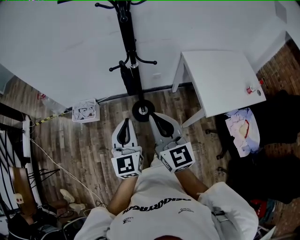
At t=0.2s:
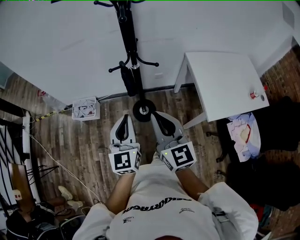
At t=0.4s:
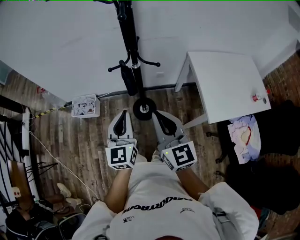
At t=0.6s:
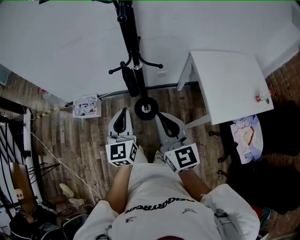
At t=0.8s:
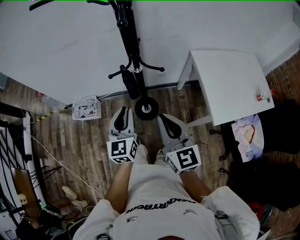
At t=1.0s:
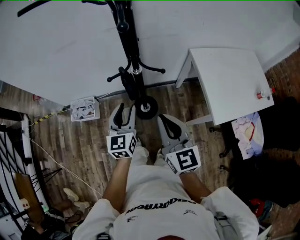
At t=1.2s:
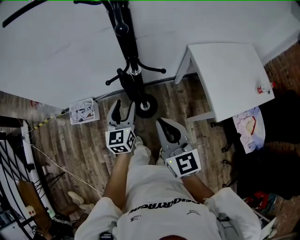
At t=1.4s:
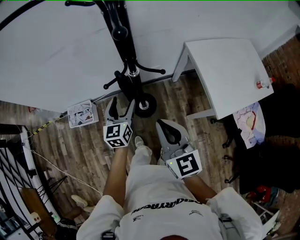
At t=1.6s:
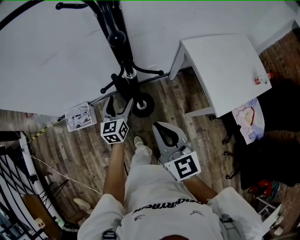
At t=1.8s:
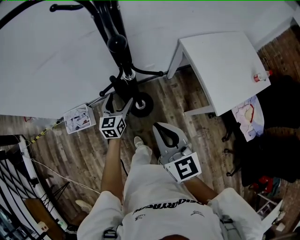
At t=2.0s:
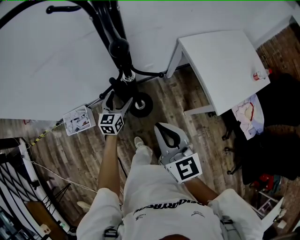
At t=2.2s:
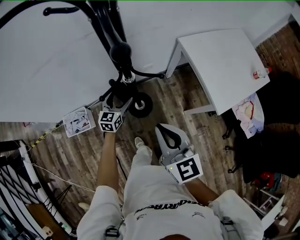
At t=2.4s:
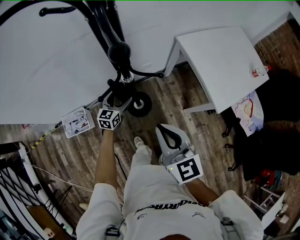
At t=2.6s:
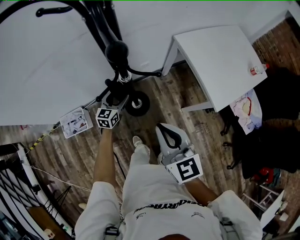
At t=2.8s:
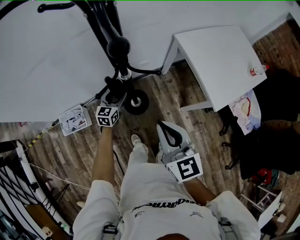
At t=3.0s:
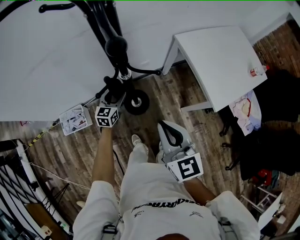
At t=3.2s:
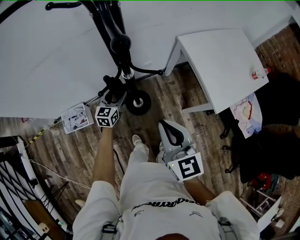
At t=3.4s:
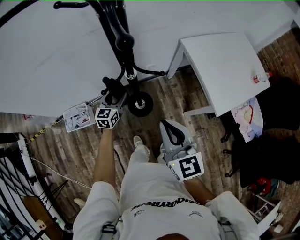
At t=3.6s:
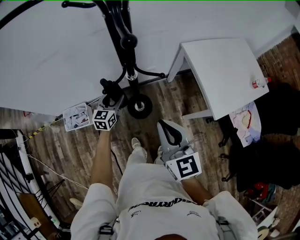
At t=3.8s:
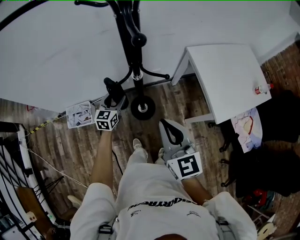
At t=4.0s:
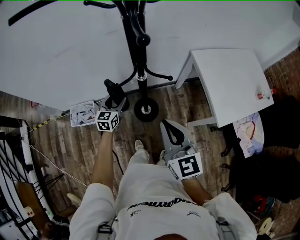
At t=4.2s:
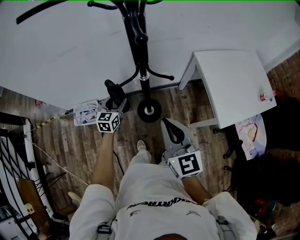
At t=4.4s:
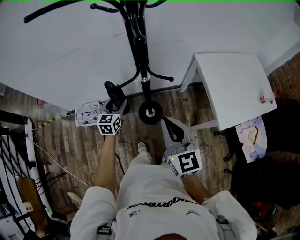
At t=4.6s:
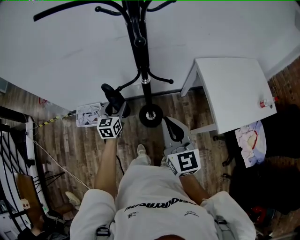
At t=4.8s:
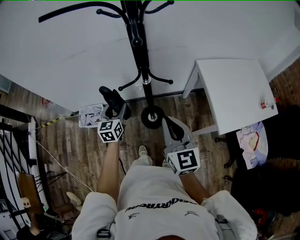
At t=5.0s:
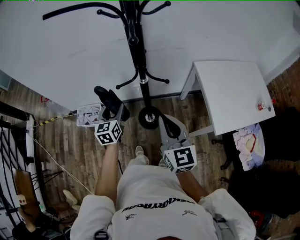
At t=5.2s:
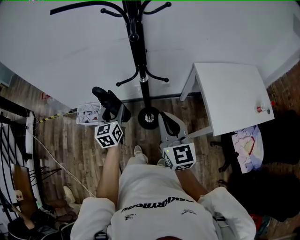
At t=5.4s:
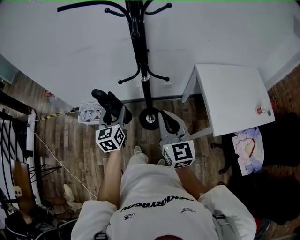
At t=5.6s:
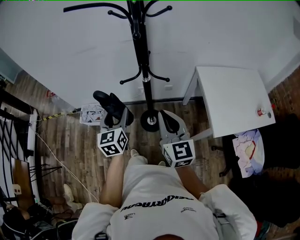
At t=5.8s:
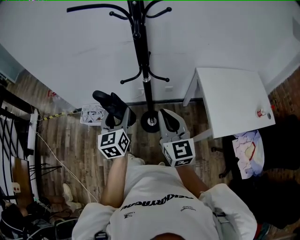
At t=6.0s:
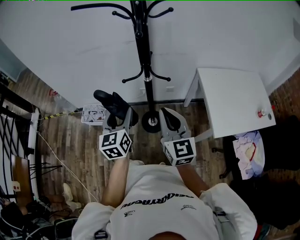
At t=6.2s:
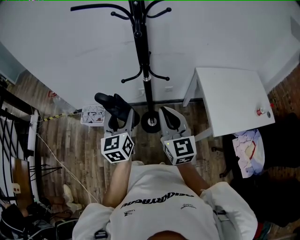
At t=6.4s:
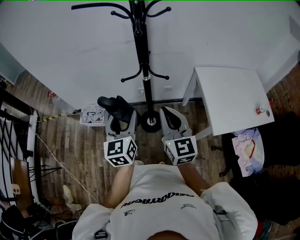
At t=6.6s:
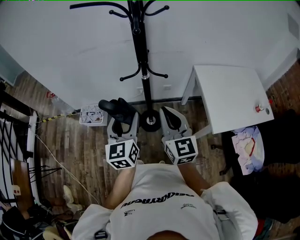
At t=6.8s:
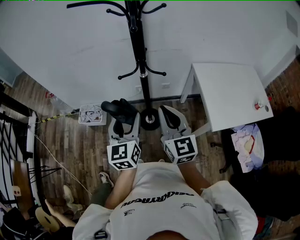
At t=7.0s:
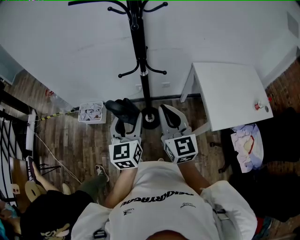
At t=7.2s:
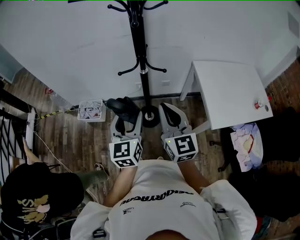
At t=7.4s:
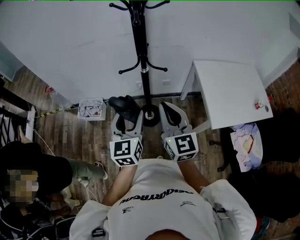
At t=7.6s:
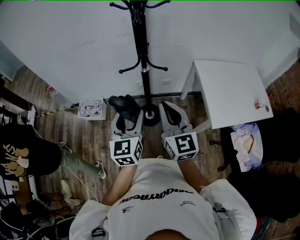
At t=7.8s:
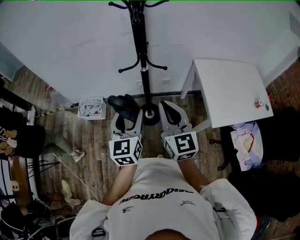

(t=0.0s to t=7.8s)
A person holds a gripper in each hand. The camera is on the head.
t=0.0s - t=1.6s: The right gripper is displaced forward and downward by about 20 cm. Meanwhile the left gripper travels forward and downward by some 35 cm, swivels about 20 degrees, and opens up.
t=1.6s - t=3.2s: The left gripper moves downward and forward, about 10 cm.
t=3.2s - t=4.6s: The left gripper is displaced upward, backward and to the left by approximately 15 cm, and changes its angle by some 20 degrees.
t=4.6s - t=6.2s: The right gripper heads backward, covering roughly 5 cm; the left gripper moves backward and upward, approximately 25 cm.
t=6.2s - t=7.8s: The left gripper shifts by about 5 cm.

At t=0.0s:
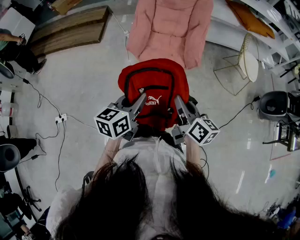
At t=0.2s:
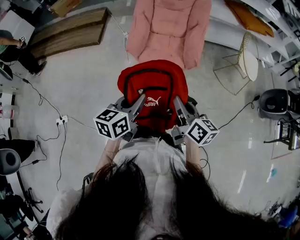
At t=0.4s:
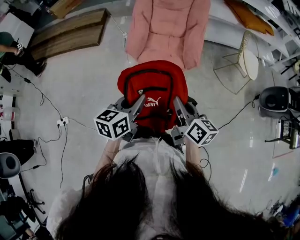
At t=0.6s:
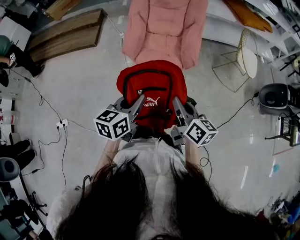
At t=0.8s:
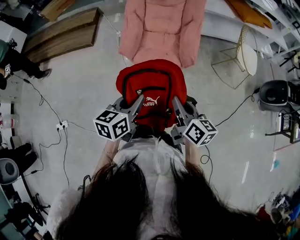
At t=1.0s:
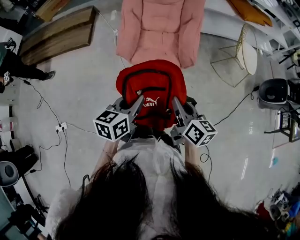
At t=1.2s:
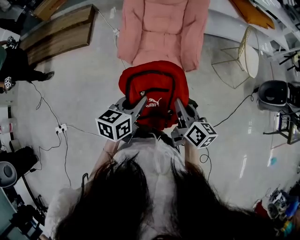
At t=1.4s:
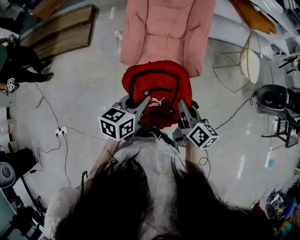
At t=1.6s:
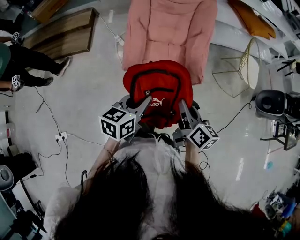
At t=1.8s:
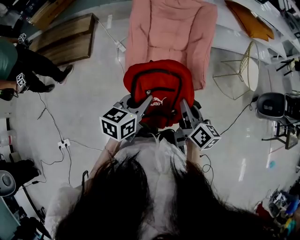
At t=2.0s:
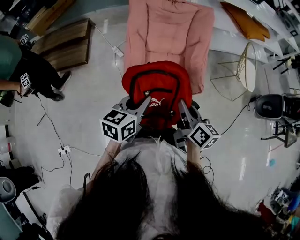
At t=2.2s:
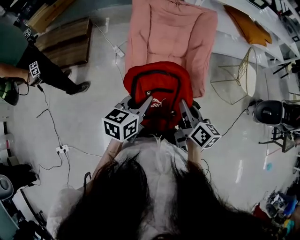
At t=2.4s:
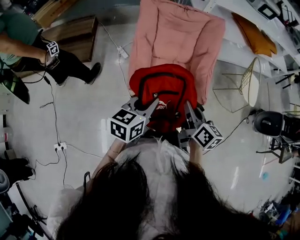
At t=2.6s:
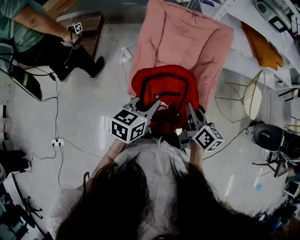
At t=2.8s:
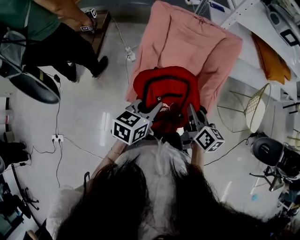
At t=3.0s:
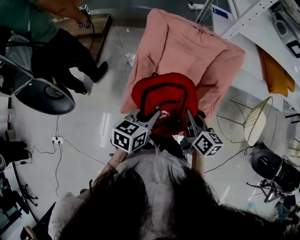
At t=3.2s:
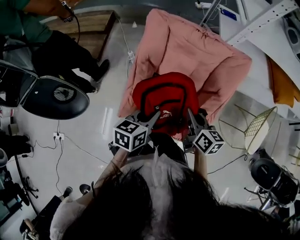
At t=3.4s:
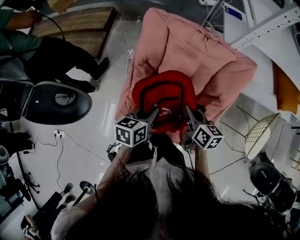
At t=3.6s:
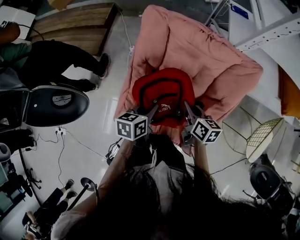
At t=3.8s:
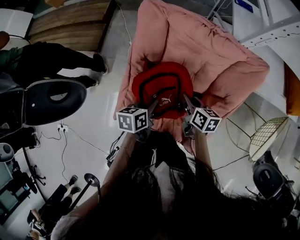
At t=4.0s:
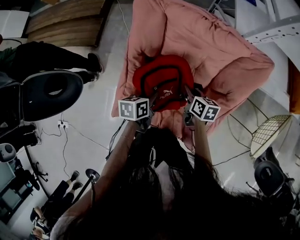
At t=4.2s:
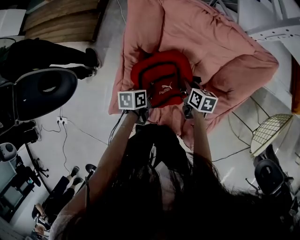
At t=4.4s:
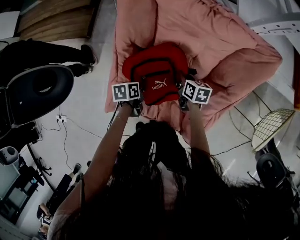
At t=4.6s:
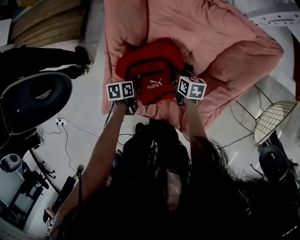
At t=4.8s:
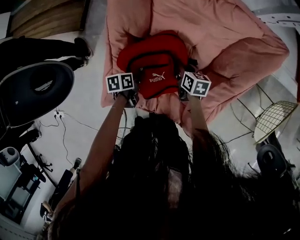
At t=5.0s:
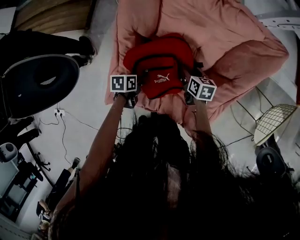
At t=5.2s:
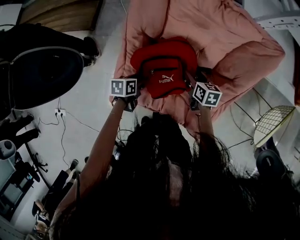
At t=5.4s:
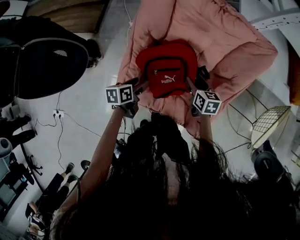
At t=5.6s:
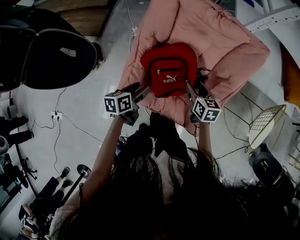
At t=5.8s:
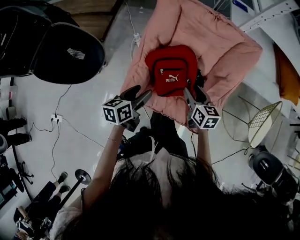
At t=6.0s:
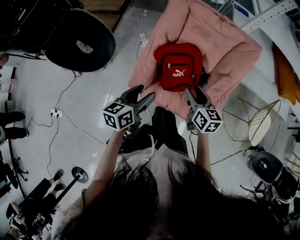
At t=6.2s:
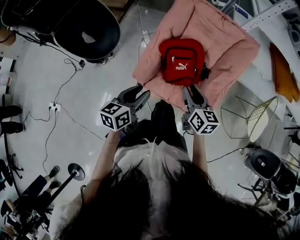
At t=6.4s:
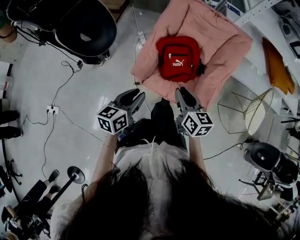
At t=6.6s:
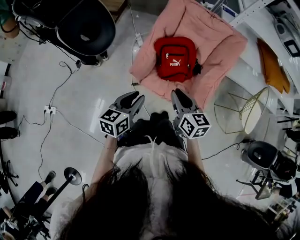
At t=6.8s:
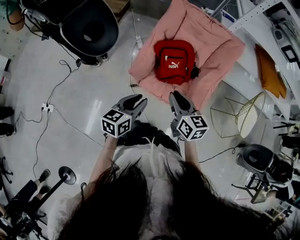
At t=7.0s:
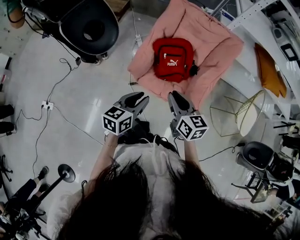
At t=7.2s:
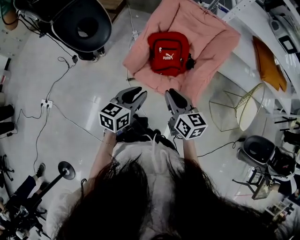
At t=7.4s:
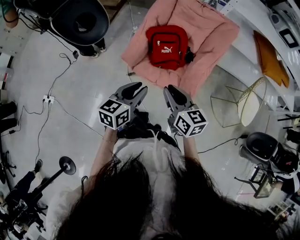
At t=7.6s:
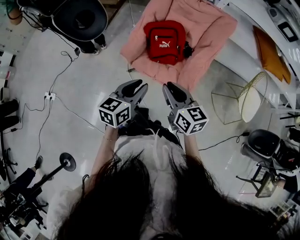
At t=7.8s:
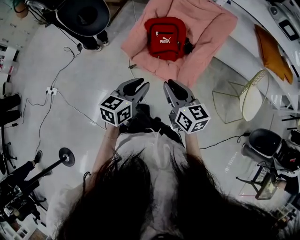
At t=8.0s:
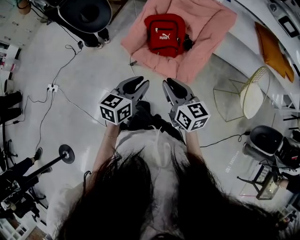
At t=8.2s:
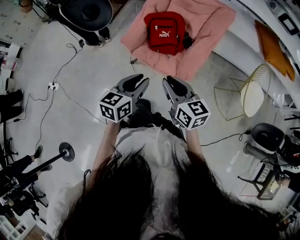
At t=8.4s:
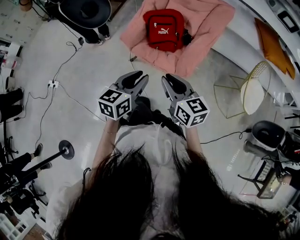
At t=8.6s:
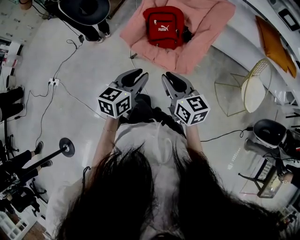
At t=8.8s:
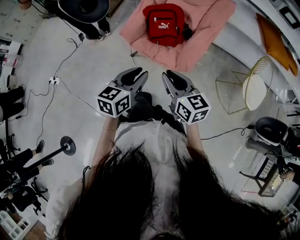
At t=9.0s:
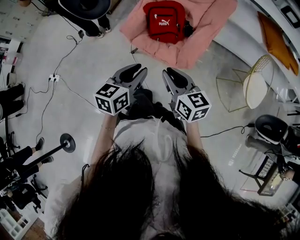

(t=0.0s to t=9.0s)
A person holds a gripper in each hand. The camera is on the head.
t=0.0s - t=1.6s: Both grippers travel together forward, some 20 cm.
t=1.6s - t=3.0s: The grippers both shift forward by some 30 cm.
t=3.0s - t=4.4s: The two grippers go roughly 40 cm downward and forward. The left gripper rotates approximately 40 degrees; the right gripper turns by about 30 degrees.
t=4.4s - t=6.0s: The two grippers go approximately 35 cm upward and backward. The right gripper changes its angle by some 30 degrees, and opens, while the left gripper angles its fingers upward, by about 30 degrees, and opens its fingers.
t=6.0s - t=7.6s: The two grippers go some 30 cm backward. The right gripper closes its fingers; the left gripper closes its fingers.
t=7.6s - t=9.0s: The two grippers go roughly 10 cm backward and to the right.

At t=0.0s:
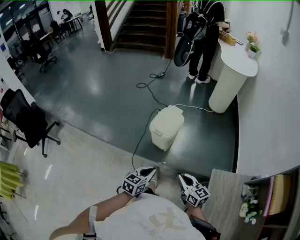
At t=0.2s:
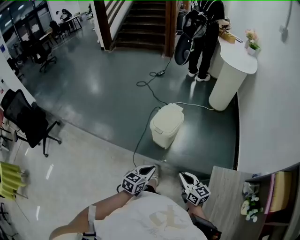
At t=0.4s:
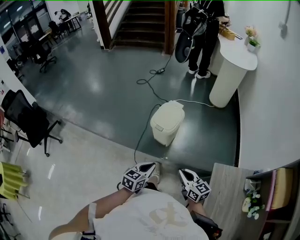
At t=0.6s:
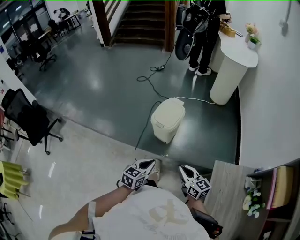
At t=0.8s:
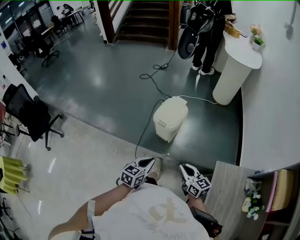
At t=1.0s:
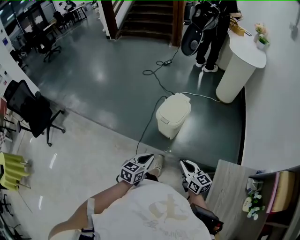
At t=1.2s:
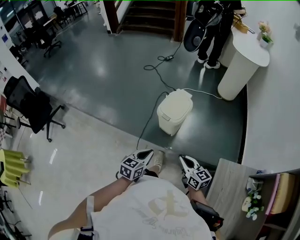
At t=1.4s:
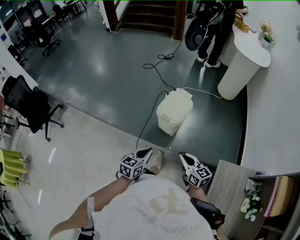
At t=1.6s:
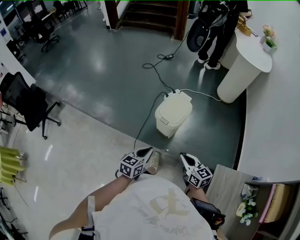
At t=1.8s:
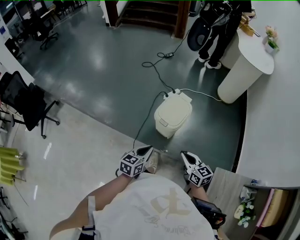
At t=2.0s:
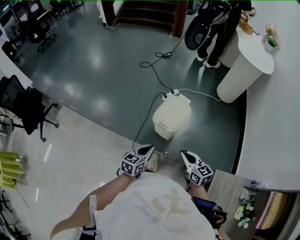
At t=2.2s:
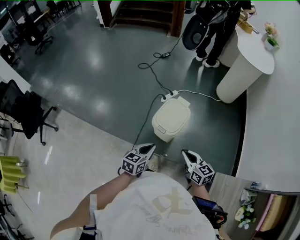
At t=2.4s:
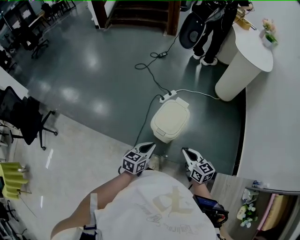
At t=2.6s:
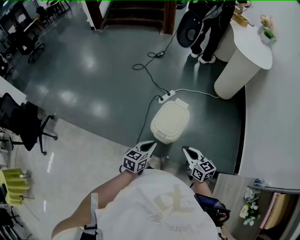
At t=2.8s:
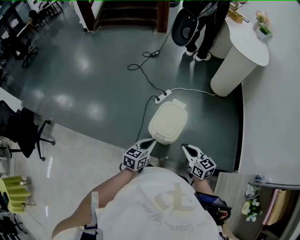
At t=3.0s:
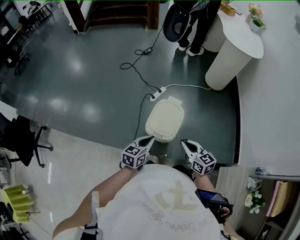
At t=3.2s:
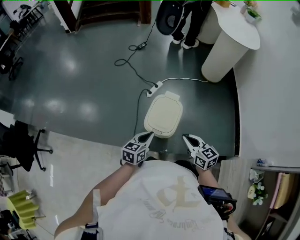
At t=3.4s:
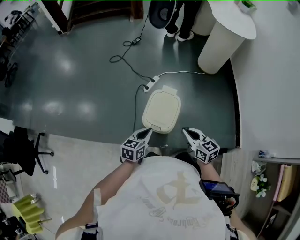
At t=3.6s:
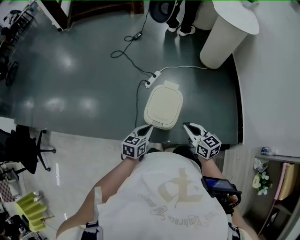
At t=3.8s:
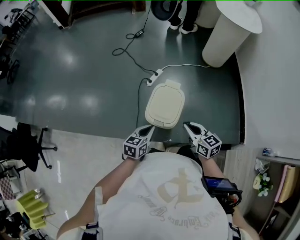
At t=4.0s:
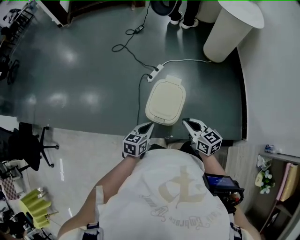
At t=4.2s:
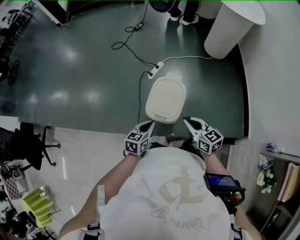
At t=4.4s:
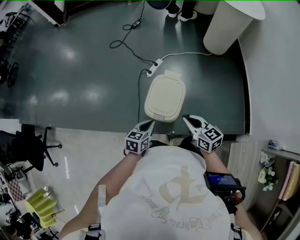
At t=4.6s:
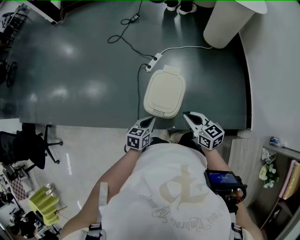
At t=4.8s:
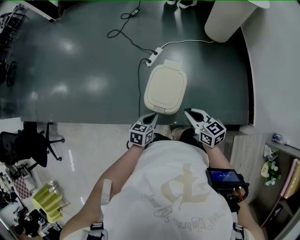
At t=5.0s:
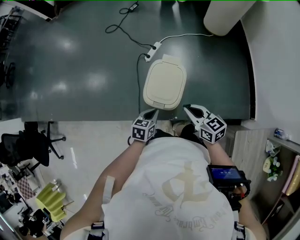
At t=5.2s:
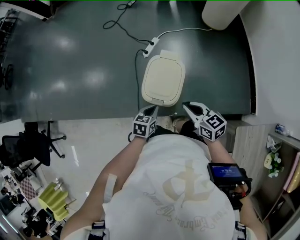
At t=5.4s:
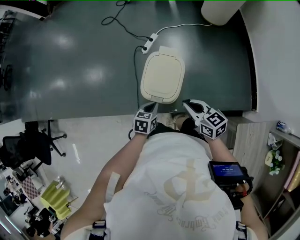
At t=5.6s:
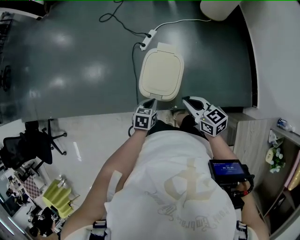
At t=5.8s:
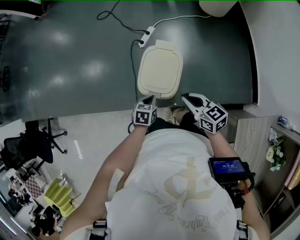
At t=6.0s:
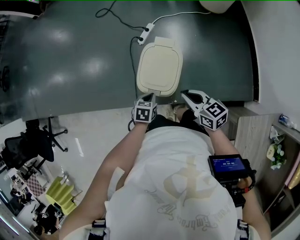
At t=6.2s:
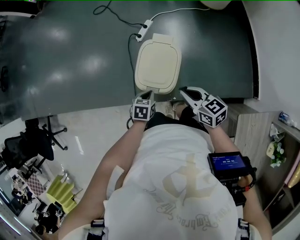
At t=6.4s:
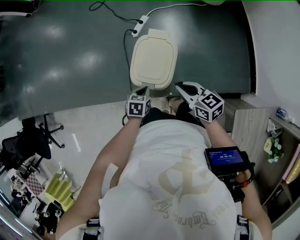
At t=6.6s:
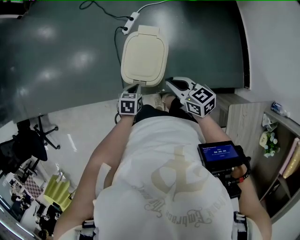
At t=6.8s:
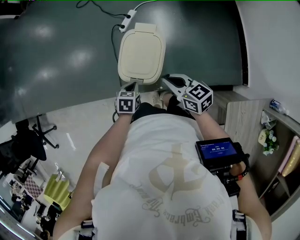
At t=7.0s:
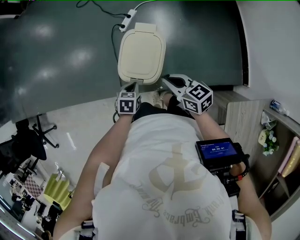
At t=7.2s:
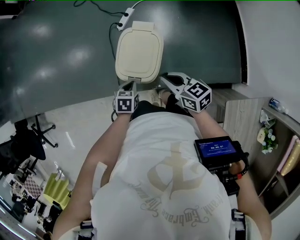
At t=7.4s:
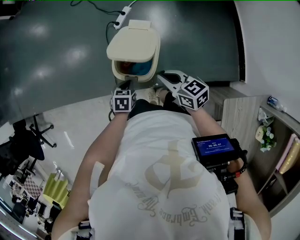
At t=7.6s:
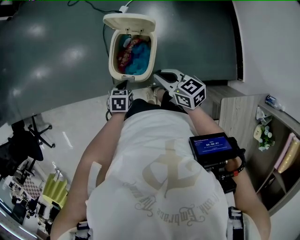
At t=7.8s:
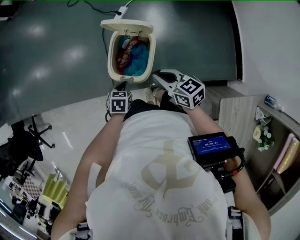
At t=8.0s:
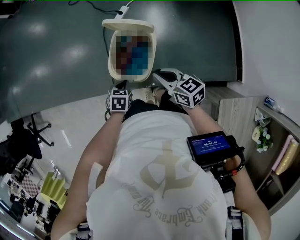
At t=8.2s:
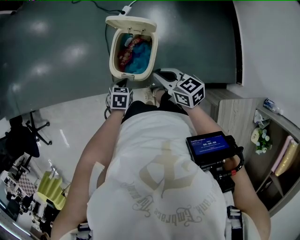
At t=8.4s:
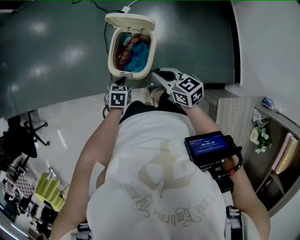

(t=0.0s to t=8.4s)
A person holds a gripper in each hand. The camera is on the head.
t=0.0s - t=1.4s: The right gripper heads forward, covering approximately 5 cm, while the left gripper travels to the left and forward by some 10 cm.
t=1.4s - t=2.8s: The grippers both shift forward by about 20 cm.
t=2.8s - t=4.2s: The left gripper goes about 5 cm downward, while the right gripper travels forward by about 5 cm.
t=4.2s - t=5.6s: The right gripper moves downward, roughly 5 cm, while the left gripper travels downward by some 10 cm, and turns by approximately 20 degrees.
t=5.6s - t=8.4s: There are only small adjustments of the grippers.
